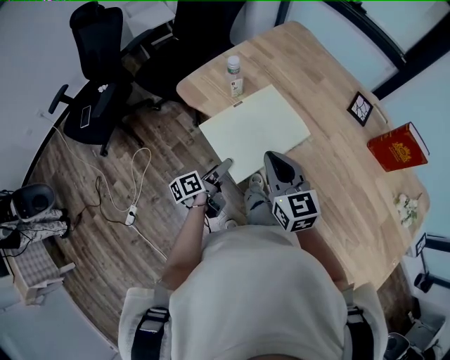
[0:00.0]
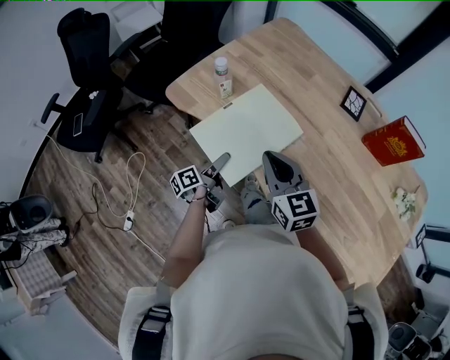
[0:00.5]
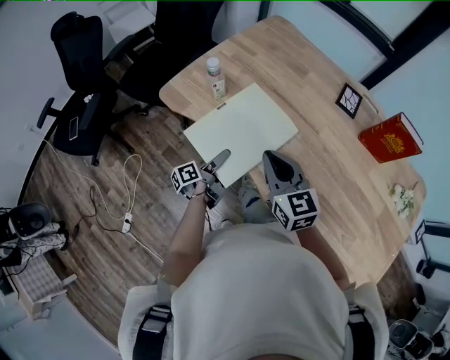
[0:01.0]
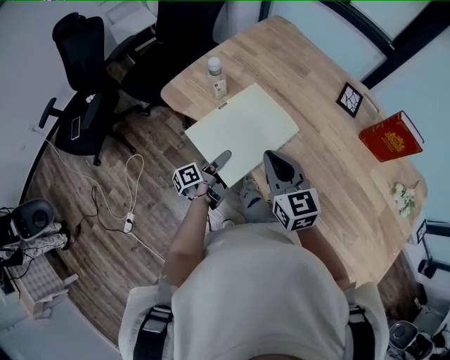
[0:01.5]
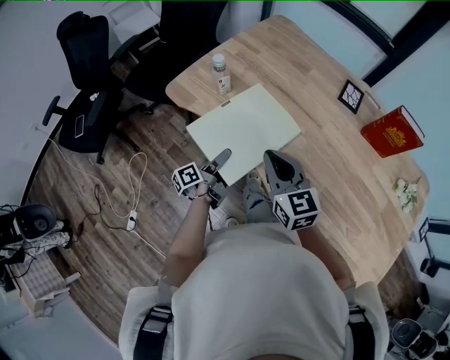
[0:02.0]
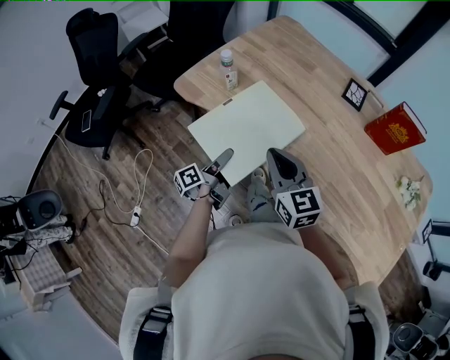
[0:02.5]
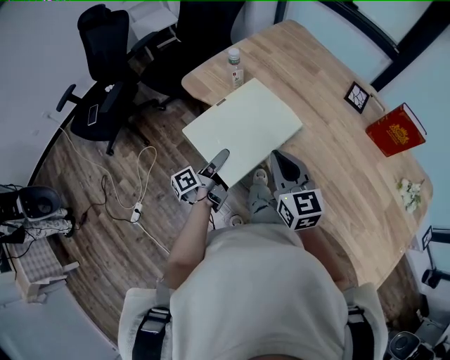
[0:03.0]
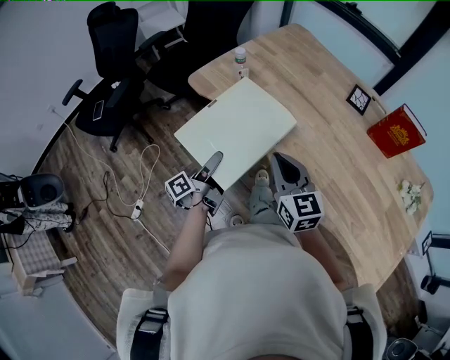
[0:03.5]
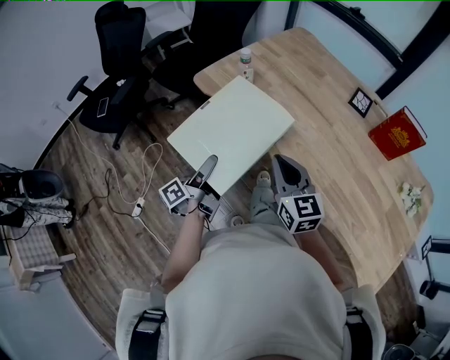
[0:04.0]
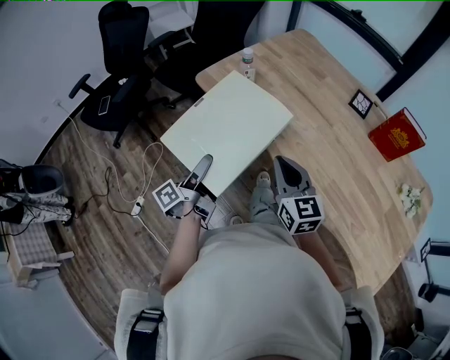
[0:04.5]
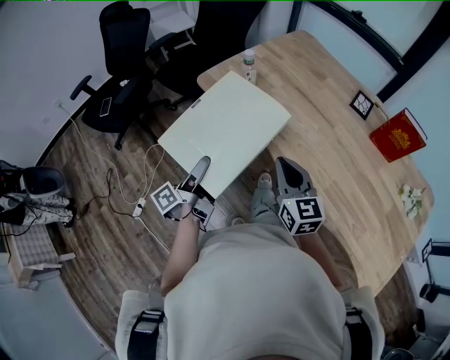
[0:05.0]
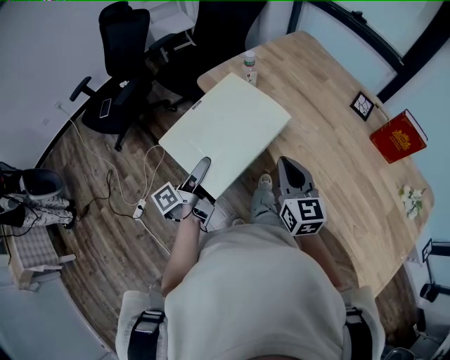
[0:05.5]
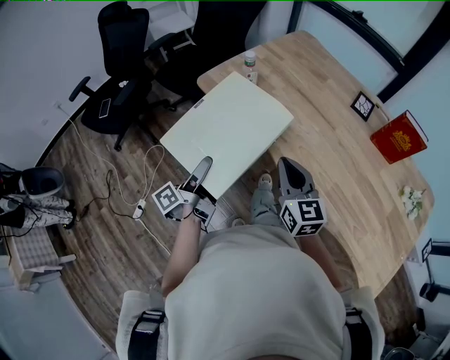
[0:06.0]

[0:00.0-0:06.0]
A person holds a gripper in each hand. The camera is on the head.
0:02.0 to 0:04.0: The left gripper travels backward, upward and to the left by roughly 20 cm, while the right gripper heads backward, covering about 10 cm.
0:04.0 to 0:06.0: The grippers stay close to where they were, moving slightly.

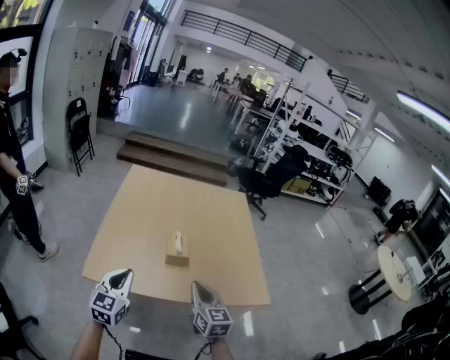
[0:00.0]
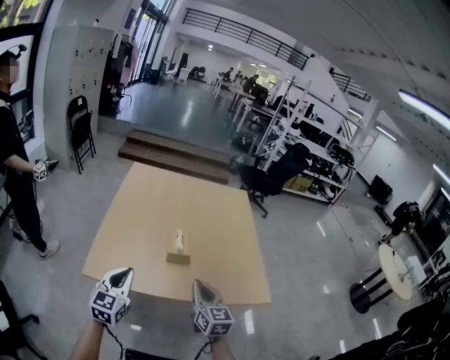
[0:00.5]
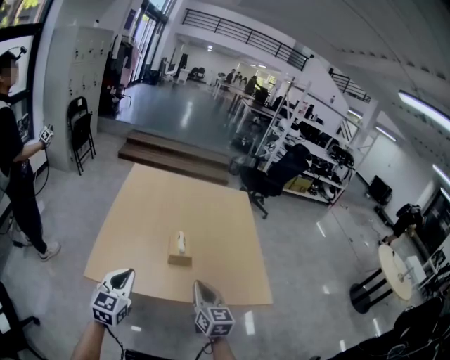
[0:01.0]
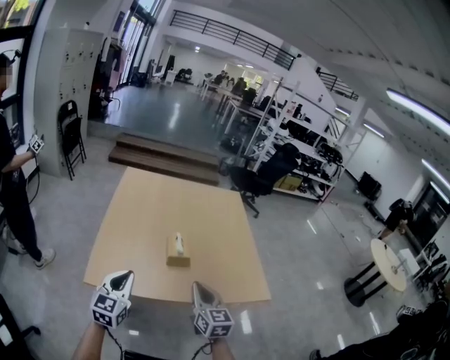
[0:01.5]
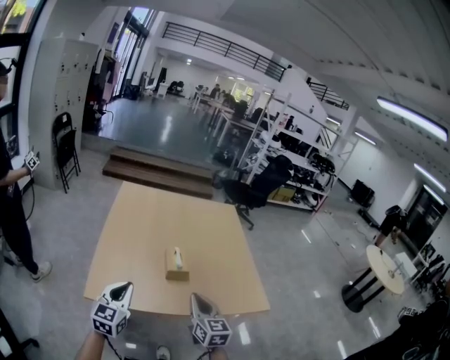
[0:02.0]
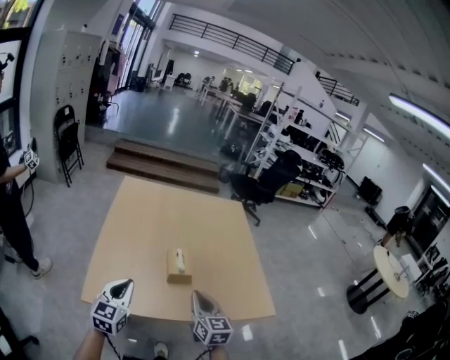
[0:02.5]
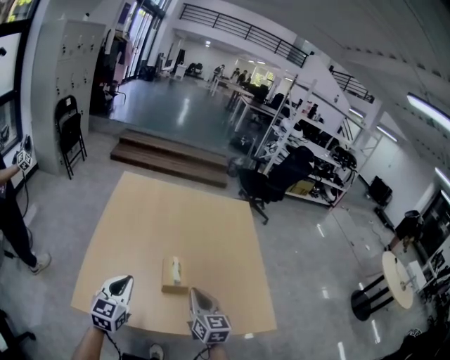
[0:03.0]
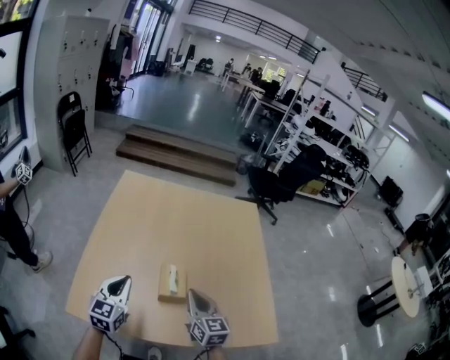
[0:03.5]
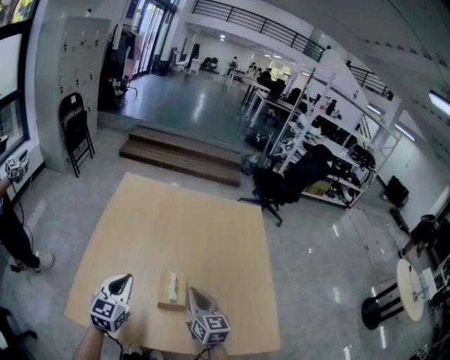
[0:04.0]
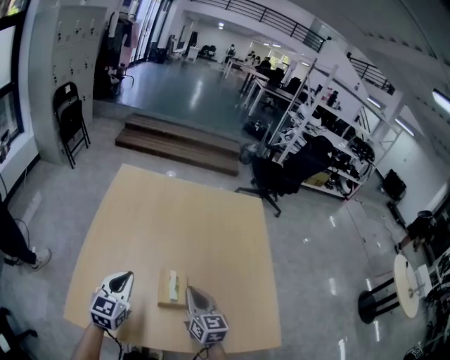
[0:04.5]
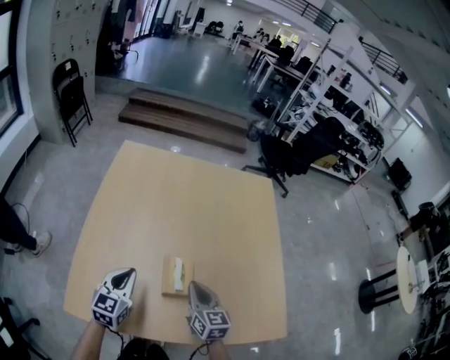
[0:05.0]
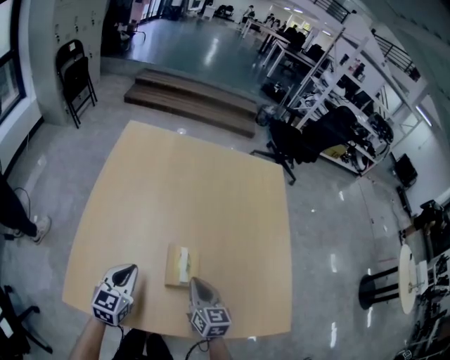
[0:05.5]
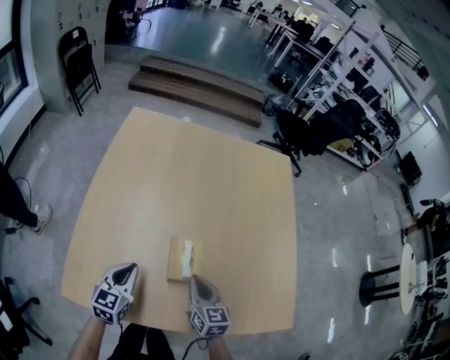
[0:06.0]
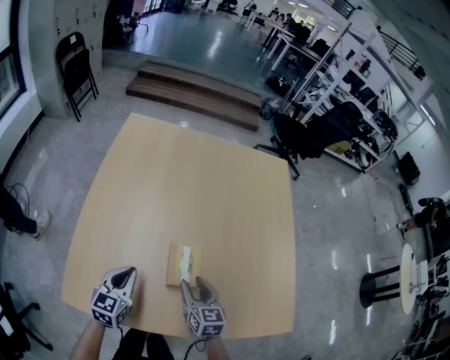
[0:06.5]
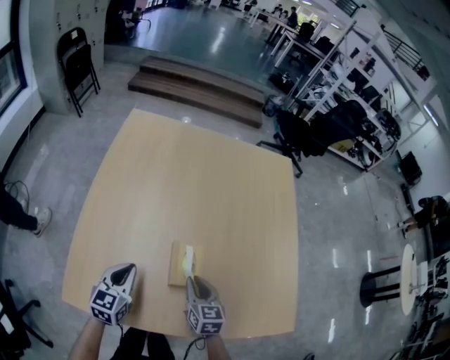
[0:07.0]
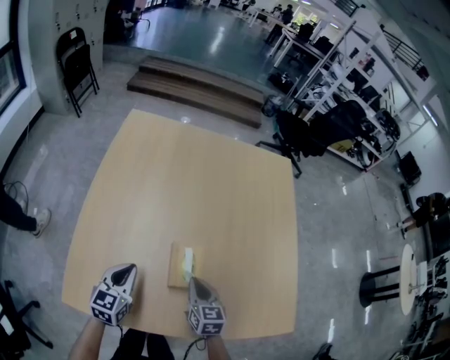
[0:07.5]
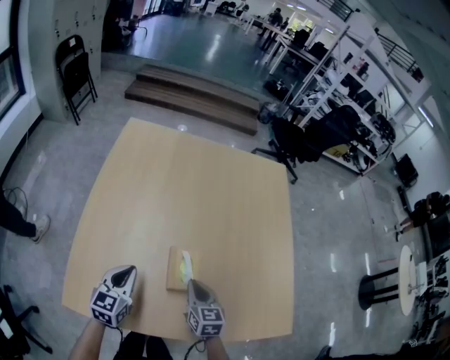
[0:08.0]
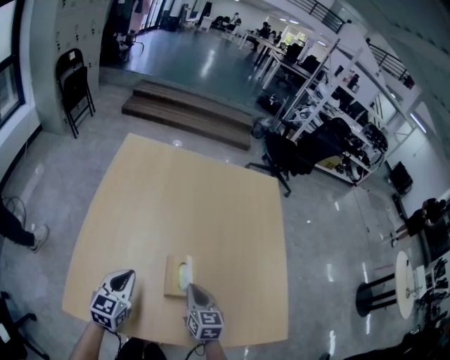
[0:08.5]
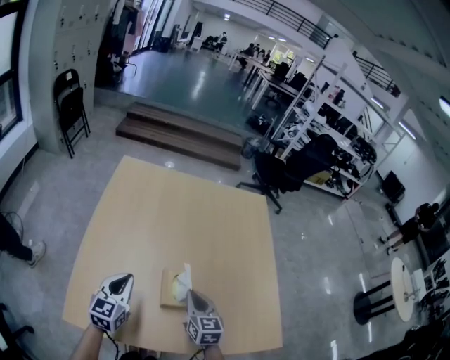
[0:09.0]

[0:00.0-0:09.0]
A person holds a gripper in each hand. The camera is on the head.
0:00.0 to 0:02.0: The grippers move only a little.
0:02.0 to 0:04.5: The grippers both shift forward by approximately 25 cm.
0:04.5 to 0:07.0: The two grippers go about 10 cm downward. The right gripper opens up.
0:07.0 to 0:09.0: Both grippers travel together upward, approximately 10 cm. The right gripper closes.

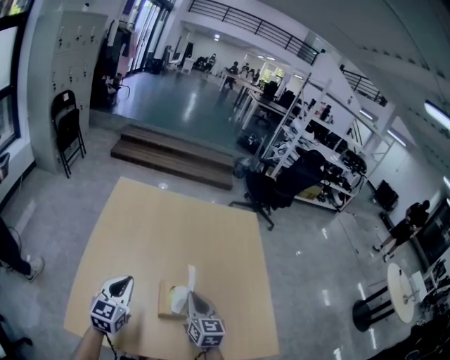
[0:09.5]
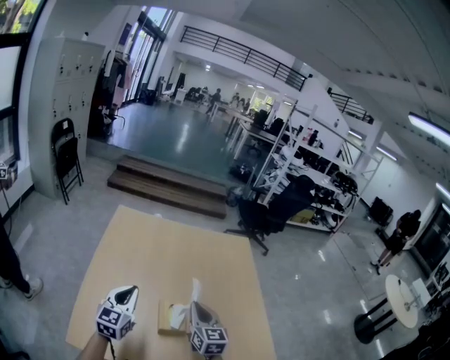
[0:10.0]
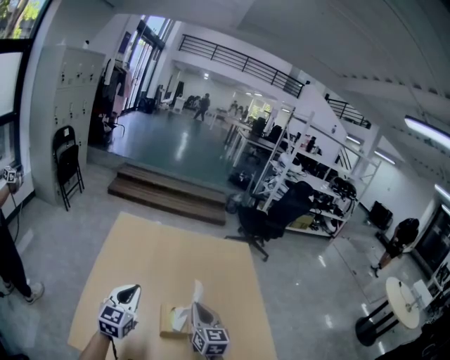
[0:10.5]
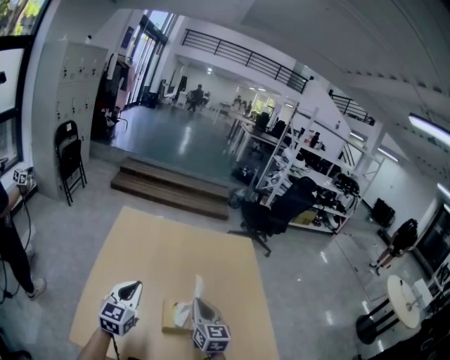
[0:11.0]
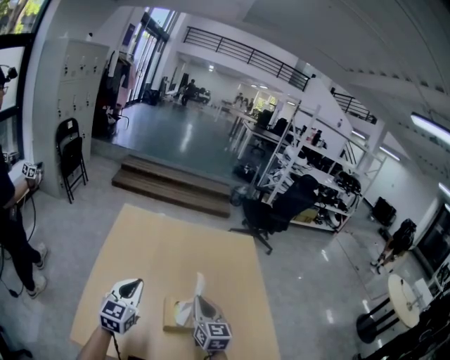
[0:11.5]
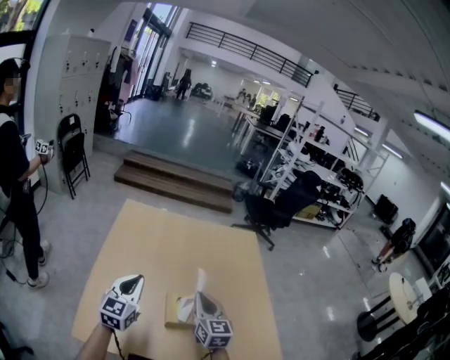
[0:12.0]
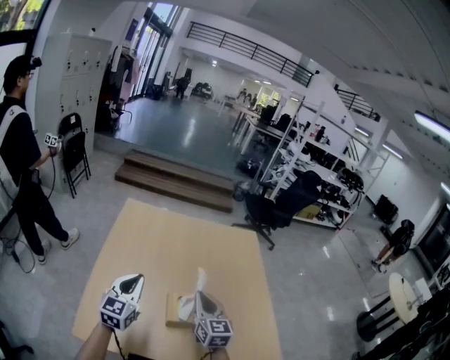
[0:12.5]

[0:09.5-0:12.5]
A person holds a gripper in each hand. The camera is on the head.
0:09.5 to 0:11.0: The two grippers go approximately 5 cm upward.
0:11.0 to 0:12.5: There are only small adjustments of the grippers.

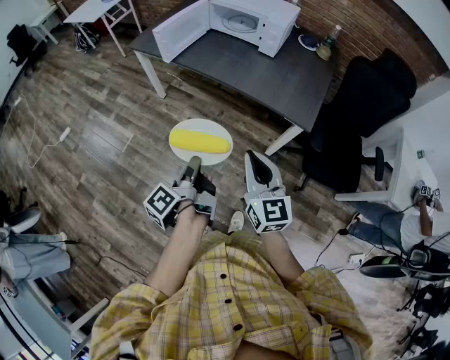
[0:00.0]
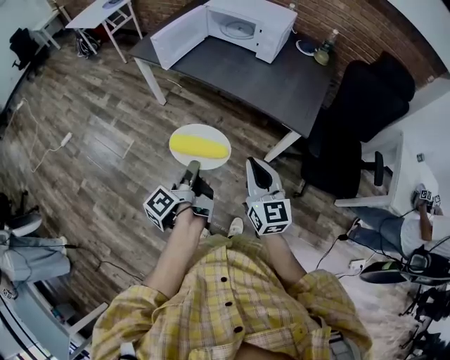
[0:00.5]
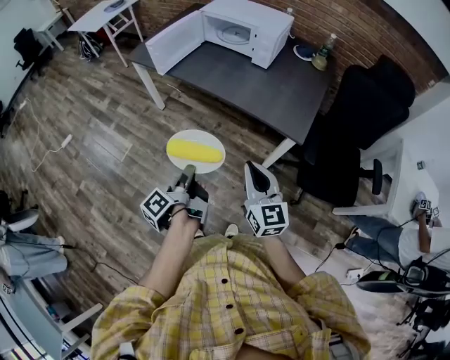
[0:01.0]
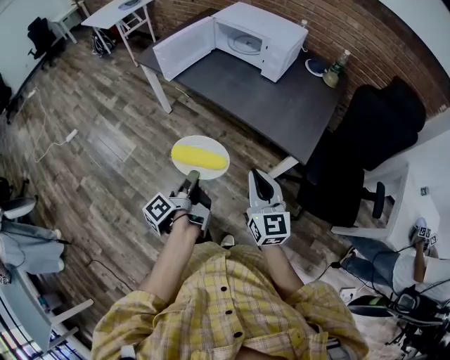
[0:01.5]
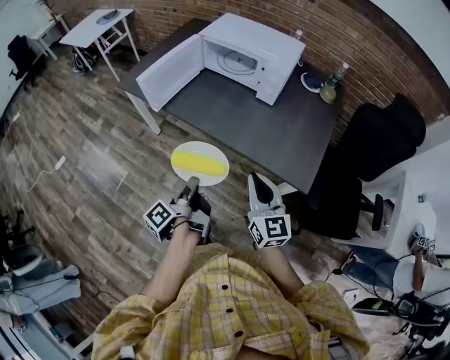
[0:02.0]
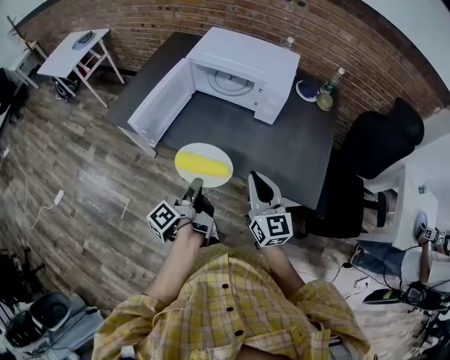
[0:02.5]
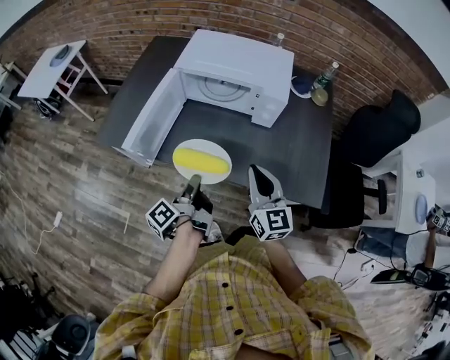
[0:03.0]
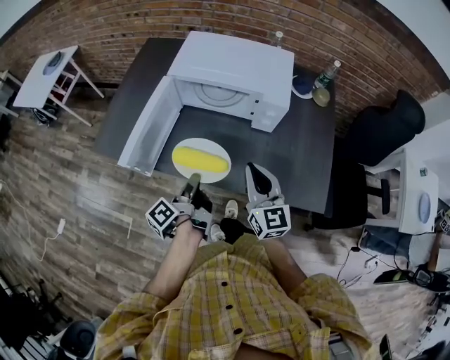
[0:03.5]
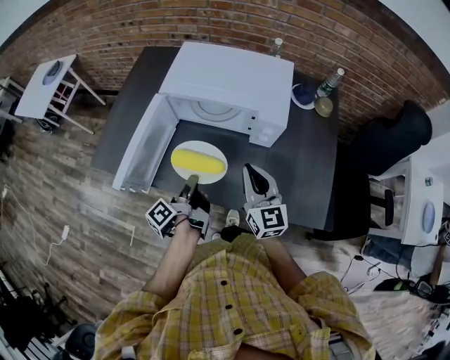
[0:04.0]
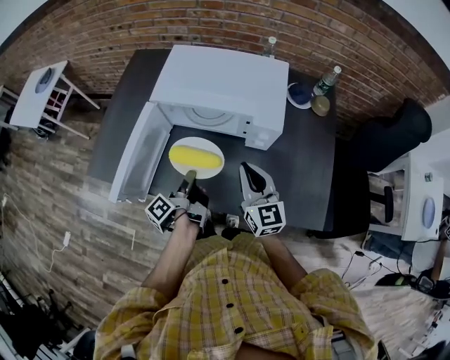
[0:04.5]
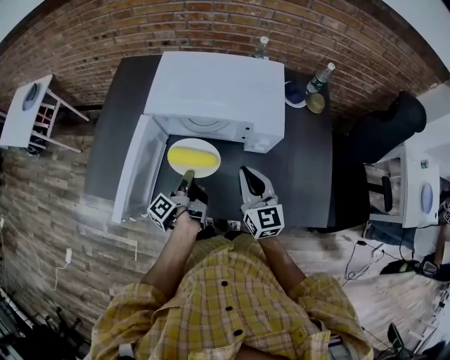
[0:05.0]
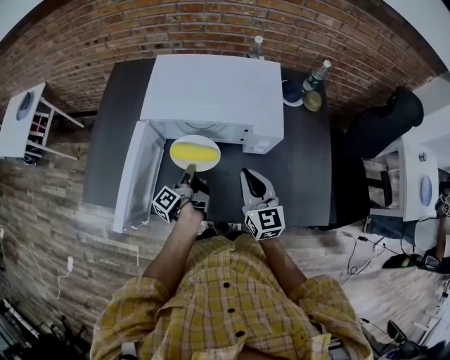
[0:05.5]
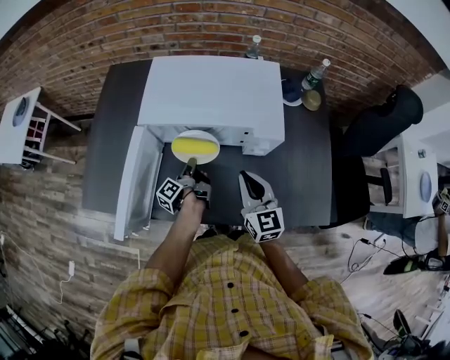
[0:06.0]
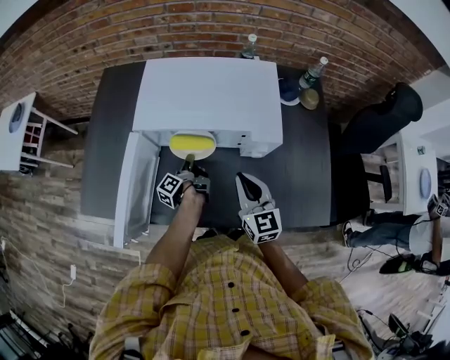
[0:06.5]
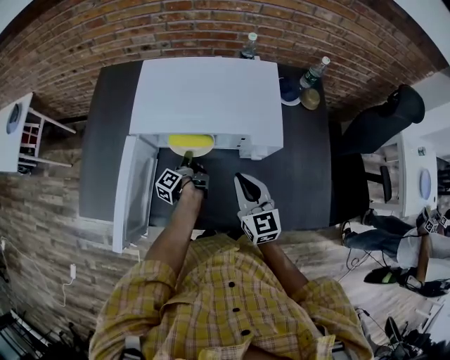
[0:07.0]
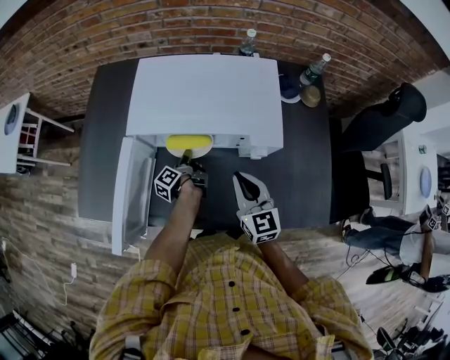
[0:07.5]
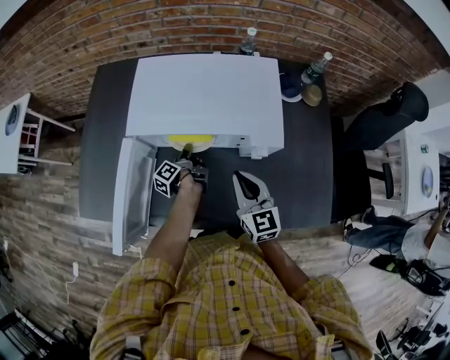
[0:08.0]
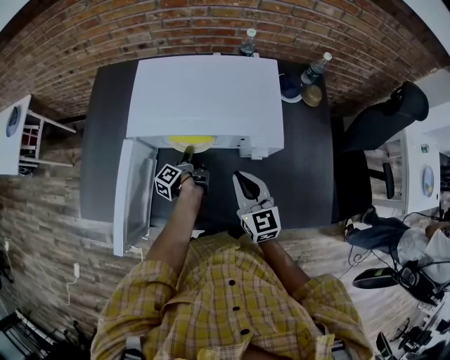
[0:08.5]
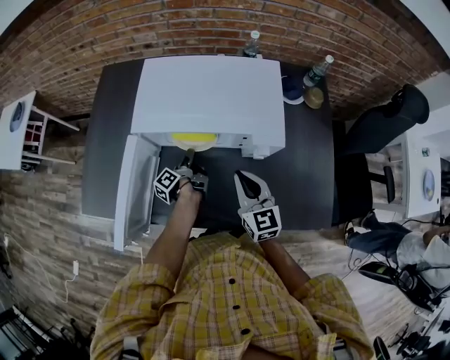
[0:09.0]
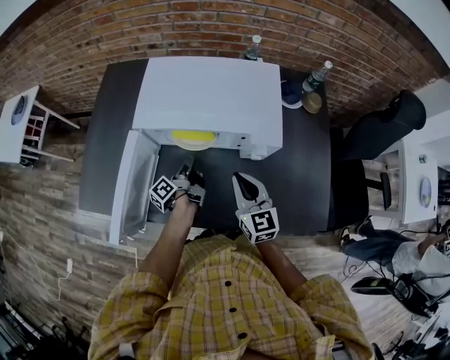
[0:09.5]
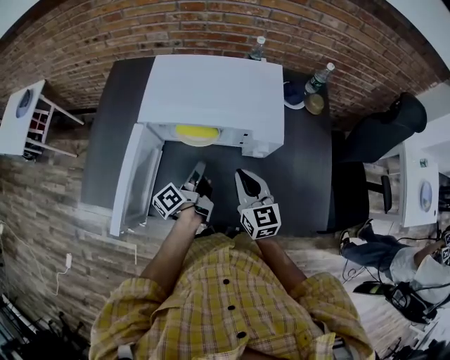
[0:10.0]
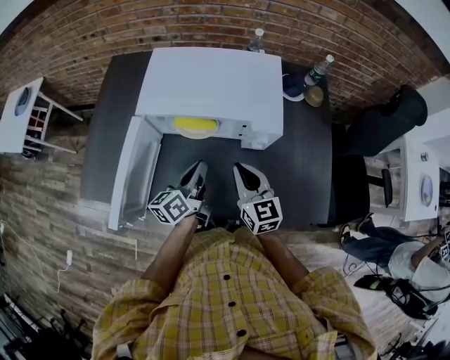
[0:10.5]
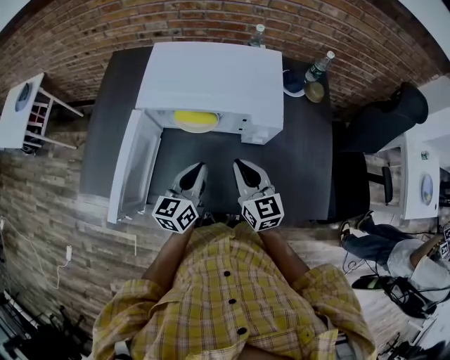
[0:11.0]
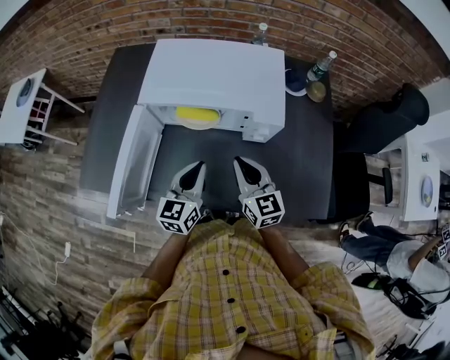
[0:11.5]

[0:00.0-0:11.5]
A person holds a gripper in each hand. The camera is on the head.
0:00.0 to 0:02.0: The right gripper shifts by approximately 25 cm.
0:02.0 to 0:04.0: The right gripper moves approximately 30 cm.
0:04.0 to 0:06.0: The right gripper ends up approximately 10 cm from where it was.
